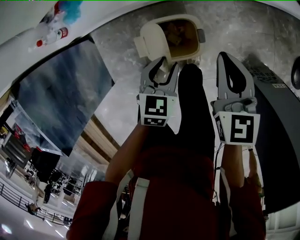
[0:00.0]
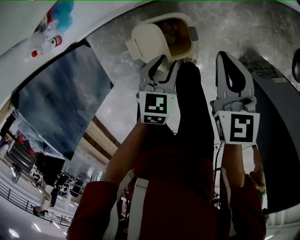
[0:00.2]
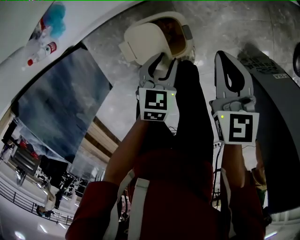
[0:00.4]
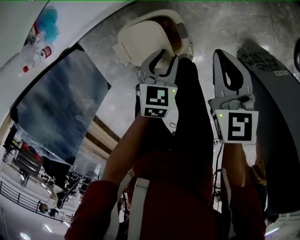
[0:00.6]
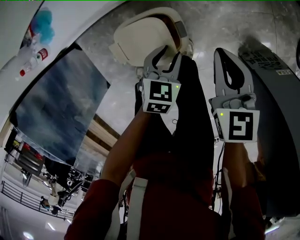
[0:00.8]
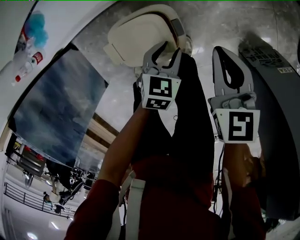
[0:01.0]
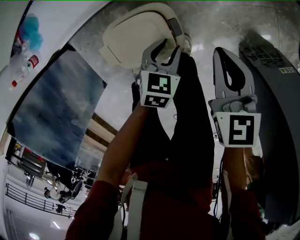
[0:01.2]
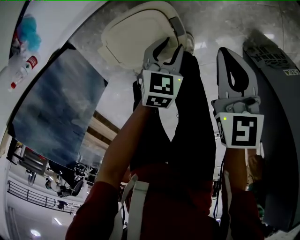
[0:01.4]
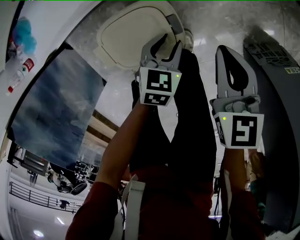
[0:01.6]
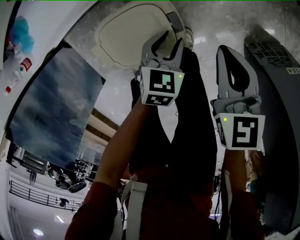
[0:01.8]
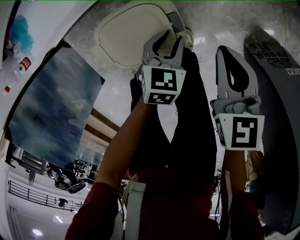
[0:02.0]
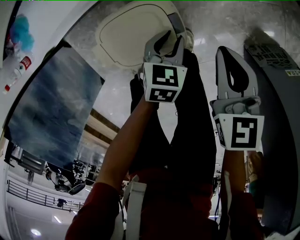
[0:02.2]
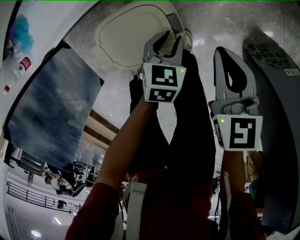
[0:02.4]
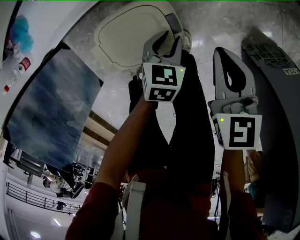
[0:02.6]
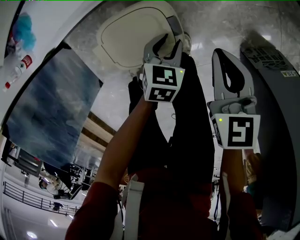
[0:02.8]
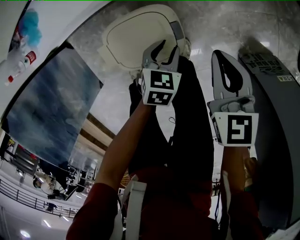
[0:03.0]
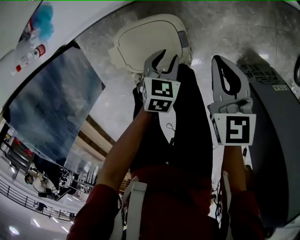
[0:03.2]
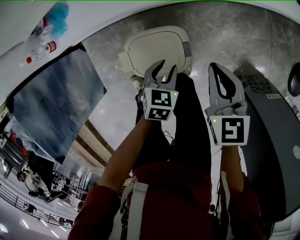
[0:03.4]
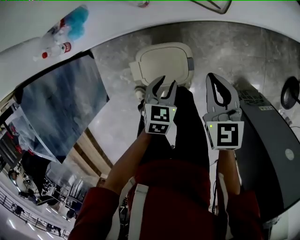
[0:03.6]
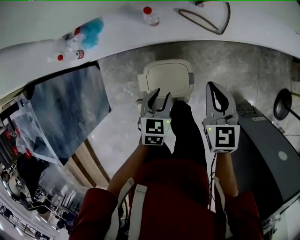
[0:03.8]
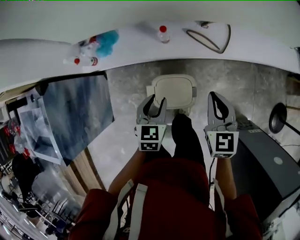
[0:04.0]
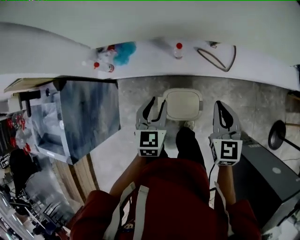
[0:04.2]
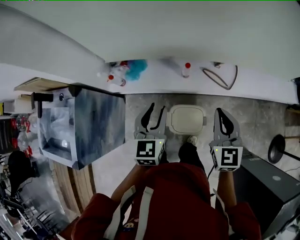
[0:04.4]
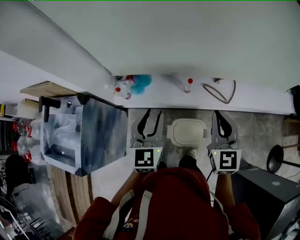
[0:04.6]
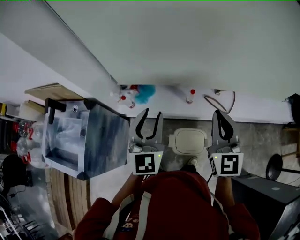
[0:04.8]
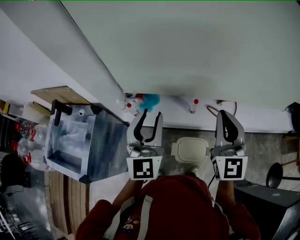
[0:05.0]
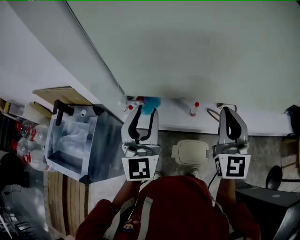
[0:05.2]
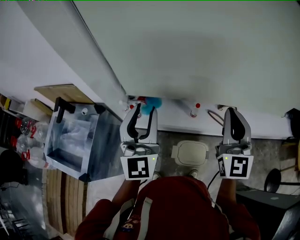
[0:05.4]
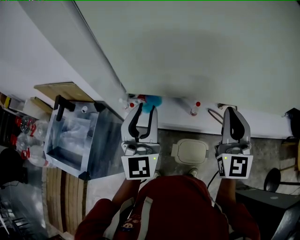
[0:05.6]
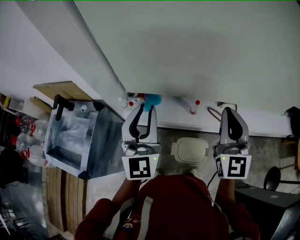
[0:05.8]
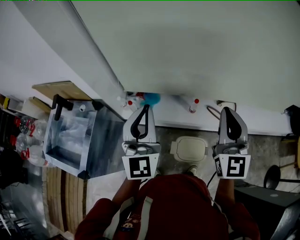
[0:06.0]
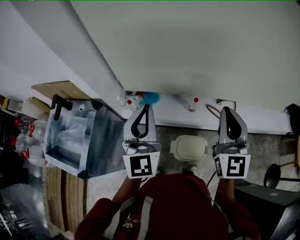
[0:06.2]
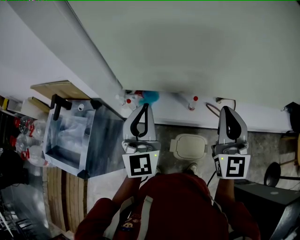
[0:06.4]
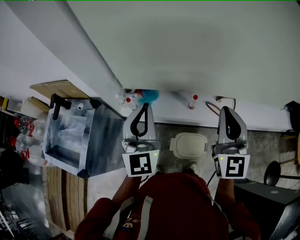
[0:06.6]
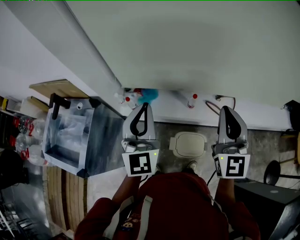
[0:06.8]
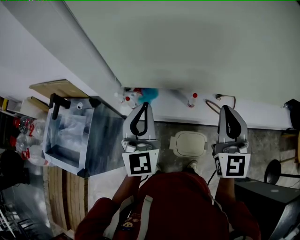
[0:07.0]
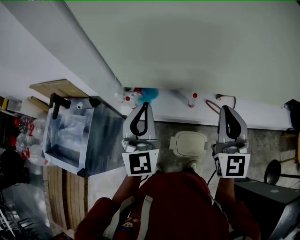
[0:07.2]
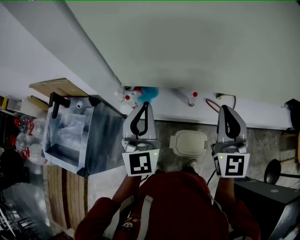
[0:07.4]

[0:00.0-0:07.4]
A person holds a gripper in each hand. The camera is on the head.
0:00.0 to 0:01.4: Both grippers move downward and to the right, roughly 20 cm.
0:01.4 to 0:03.0: The grippers make only small movements.
0:03.0 to 0:04.4: The grippers both shift upward and to the left by some 50 cm. The right gripper changes its angle by approximately 30 degrees, while the left gripper points its fingers roughly 40 degrees further upward.
0:04.4 to 0:06.0: The right gripper heads upward, covering some 20 cm, and turns by approximately 30 degrees. Meanwhile the left gripper is displaced upward and to the left by roughly 25 cm, points its fingers some 30 degrees further upward, and closes its fingers.
0:06.0 to 0:07.4: The grippers move only a little.

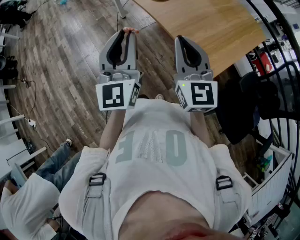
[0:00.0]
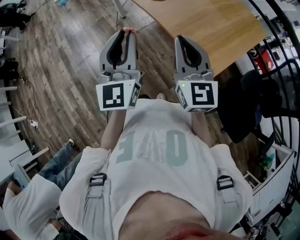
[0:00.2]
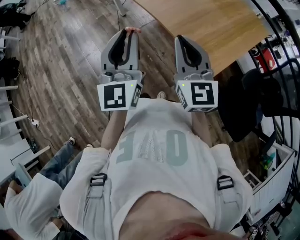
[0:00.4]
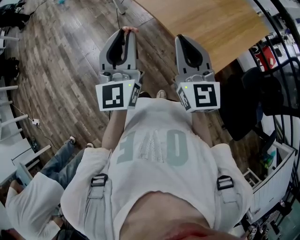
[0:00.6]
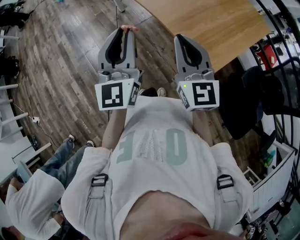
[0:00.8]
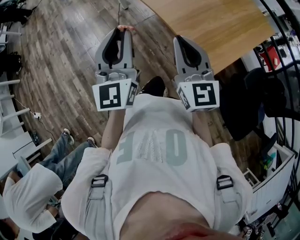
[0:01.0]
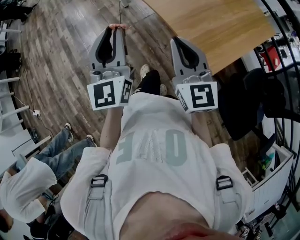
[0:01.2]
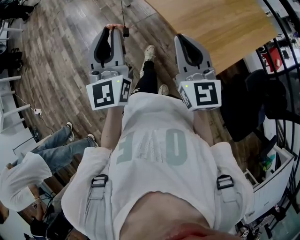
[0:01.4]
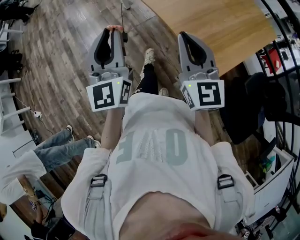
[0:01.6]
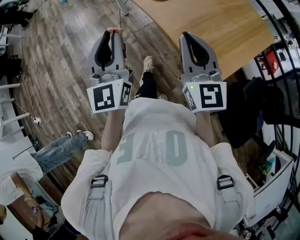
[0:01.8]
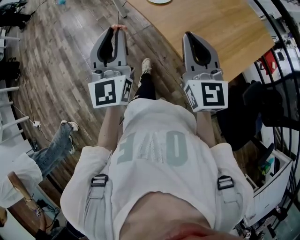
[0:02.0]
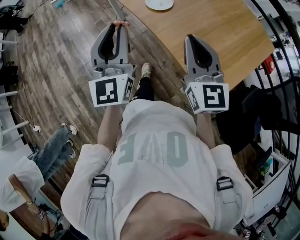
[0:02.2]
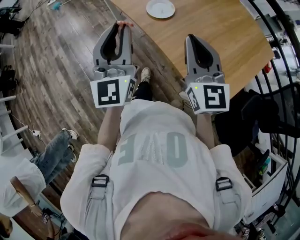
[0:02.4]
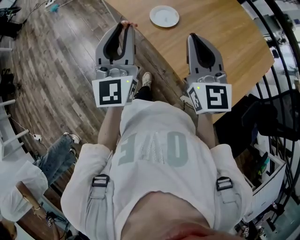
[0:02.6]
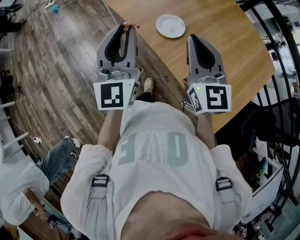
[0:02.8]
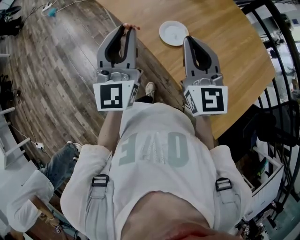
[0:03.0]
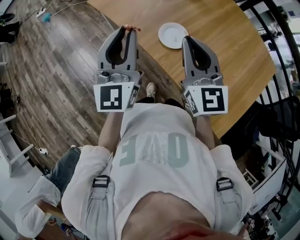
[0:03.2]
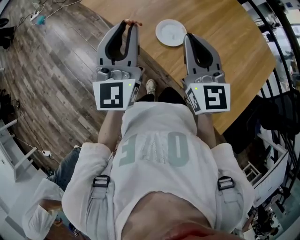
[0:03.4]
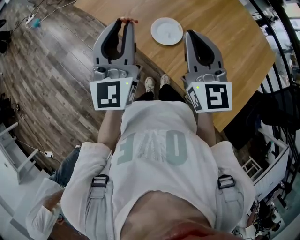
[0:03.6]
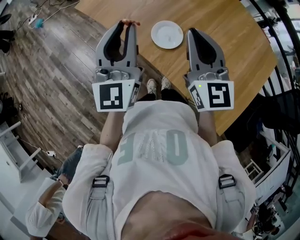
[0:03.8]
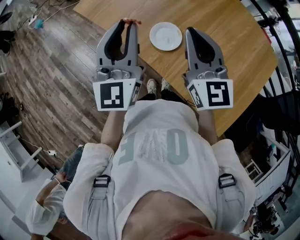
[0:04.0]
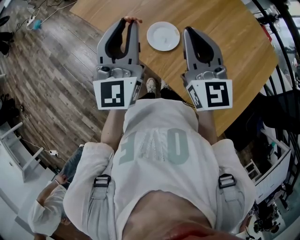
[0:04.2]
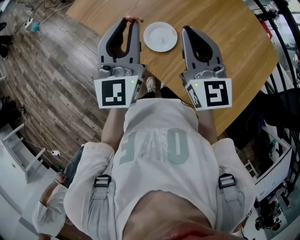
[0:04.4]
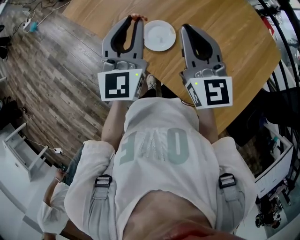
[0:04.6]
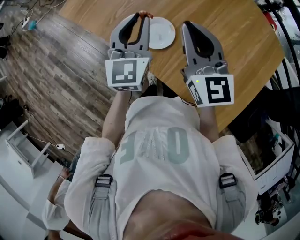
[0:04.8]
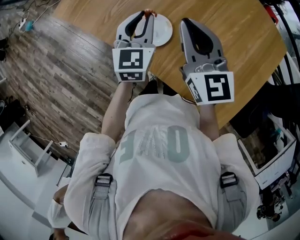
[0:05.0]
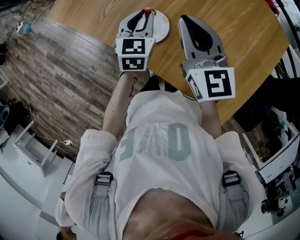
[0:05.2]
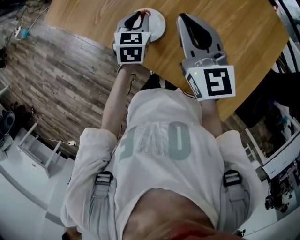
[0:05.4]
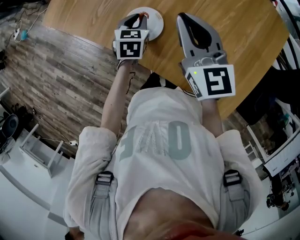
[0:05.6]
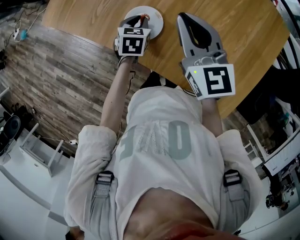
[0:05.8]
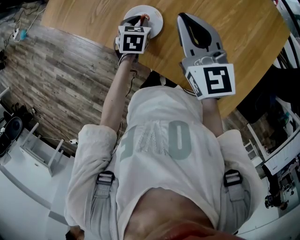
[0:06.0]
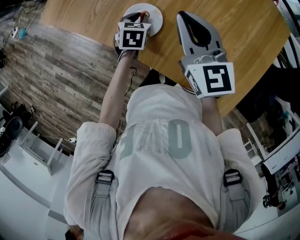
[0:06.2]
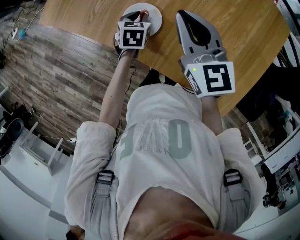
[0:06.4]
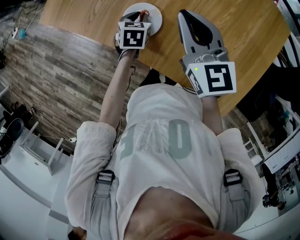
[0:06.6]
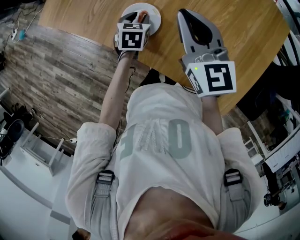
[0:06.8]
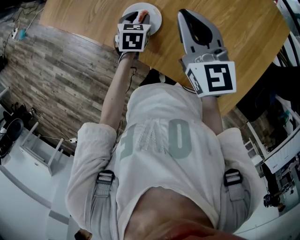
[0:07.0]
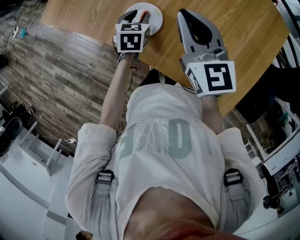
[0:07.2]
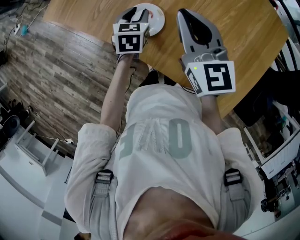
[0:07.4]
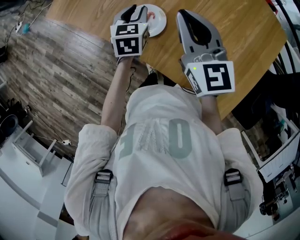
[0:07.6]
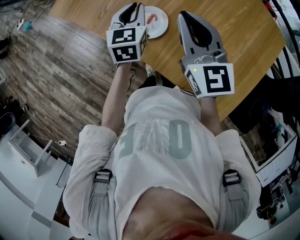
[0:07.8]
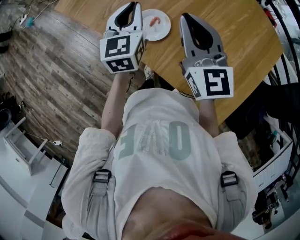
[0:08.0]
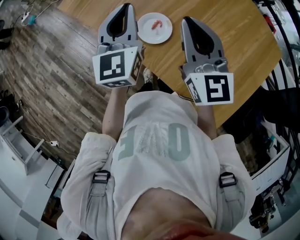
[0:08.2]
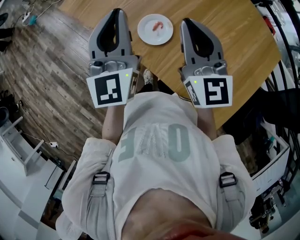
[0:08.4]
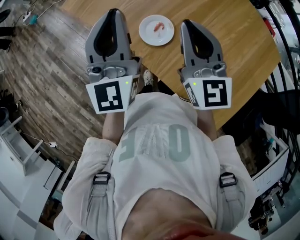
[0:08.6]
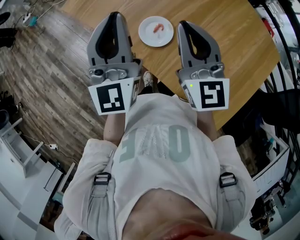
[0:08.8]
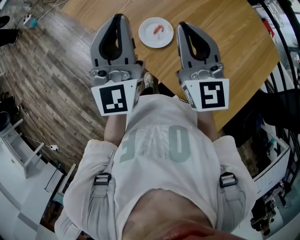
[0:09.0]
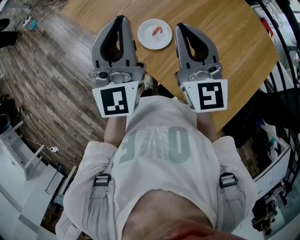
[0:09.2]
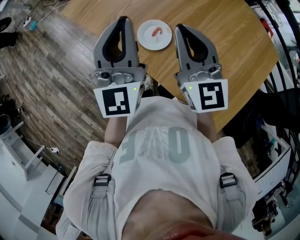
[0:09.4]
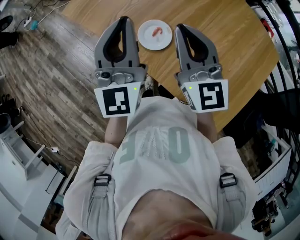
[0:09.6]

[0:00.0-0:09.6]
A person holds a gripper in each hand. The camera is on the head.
0:00.0 to 0:01.6: The grippers make only small movements.
0:01.6 to 0:03.2: The grippers both shift forward by some 35 cm.
0:03.2 to 0:04.8: The left gripper travels to the right, forward and downward by approximately 20 cm, and rotates some 20 degrees; the right gripper shifts approximately 15 cm forward and to the right.
0:04.8 to 0:06.4: The left gripper moves downward, some 25 cm, and angles its fingers downward, by roughly 40 degrees. The right gripper shifts some 5 cm downward.
0:06.4 to 0:08.0: The left gripper heads upward, covering about 20 cm, and angles its fingers upward, by approximately 40 degrees. Meanwhile the right gripper shifts some 5 cm upward.
0:08.0 to 0:09.6: The left gripper is displaced upward and backward by approximately 15 cm, and changes its angle by approximately 30 degrees.

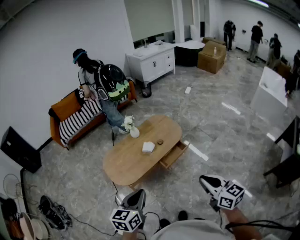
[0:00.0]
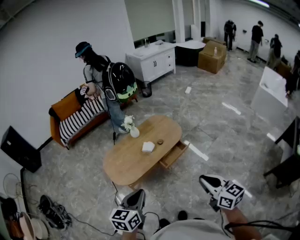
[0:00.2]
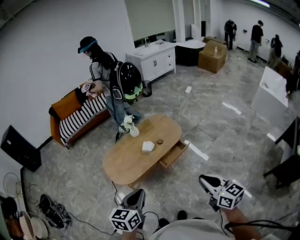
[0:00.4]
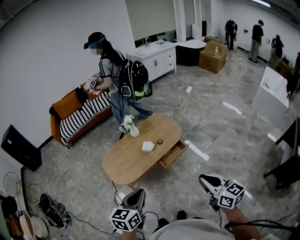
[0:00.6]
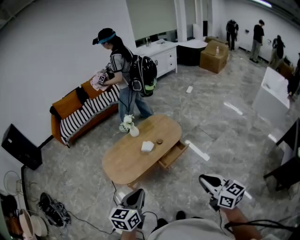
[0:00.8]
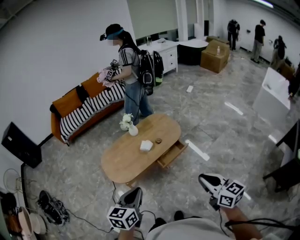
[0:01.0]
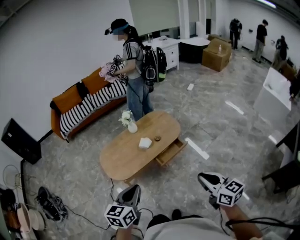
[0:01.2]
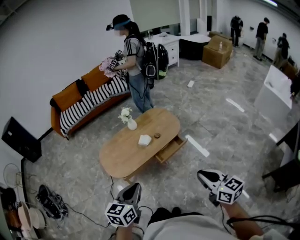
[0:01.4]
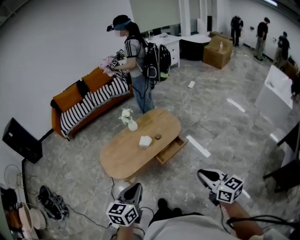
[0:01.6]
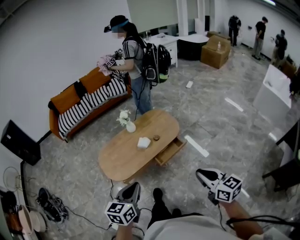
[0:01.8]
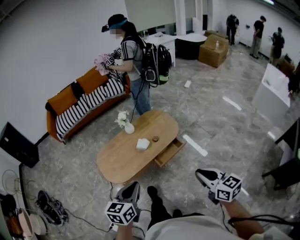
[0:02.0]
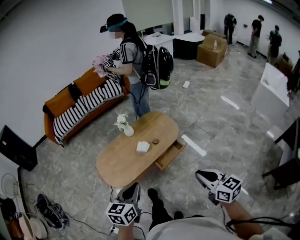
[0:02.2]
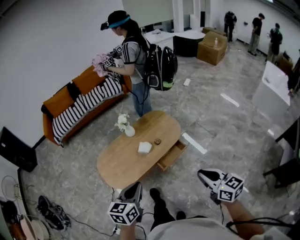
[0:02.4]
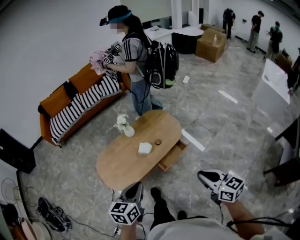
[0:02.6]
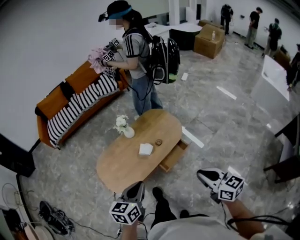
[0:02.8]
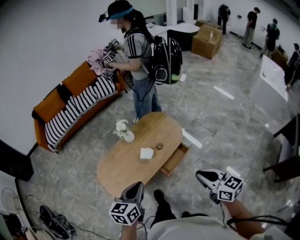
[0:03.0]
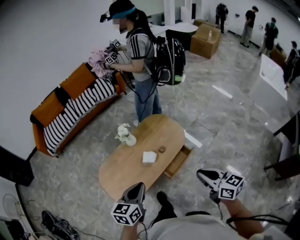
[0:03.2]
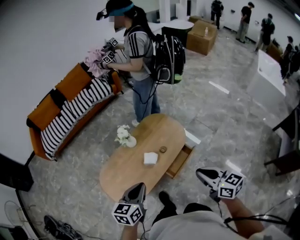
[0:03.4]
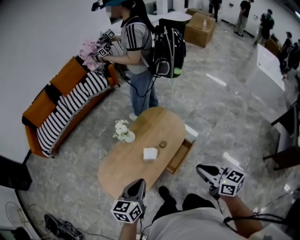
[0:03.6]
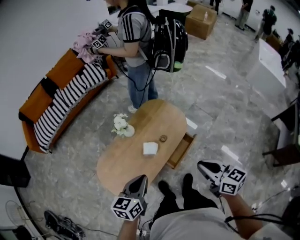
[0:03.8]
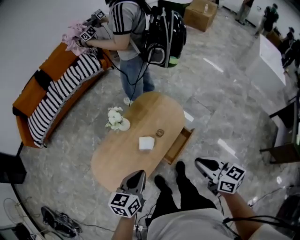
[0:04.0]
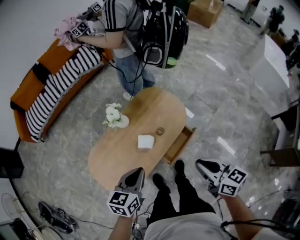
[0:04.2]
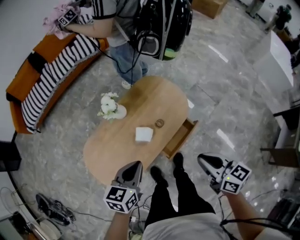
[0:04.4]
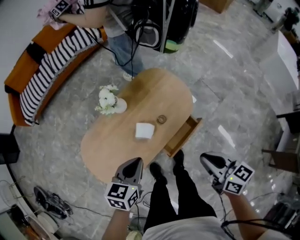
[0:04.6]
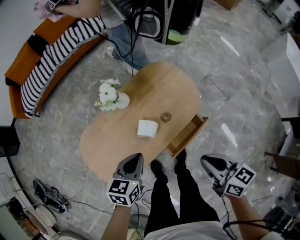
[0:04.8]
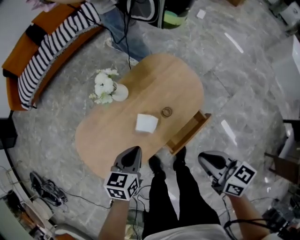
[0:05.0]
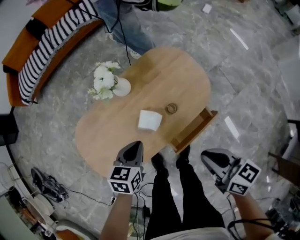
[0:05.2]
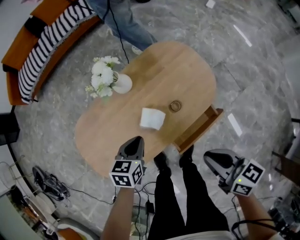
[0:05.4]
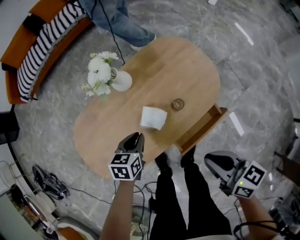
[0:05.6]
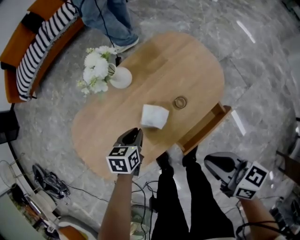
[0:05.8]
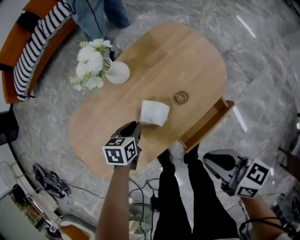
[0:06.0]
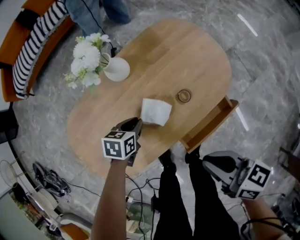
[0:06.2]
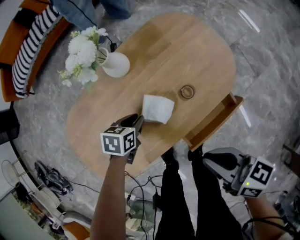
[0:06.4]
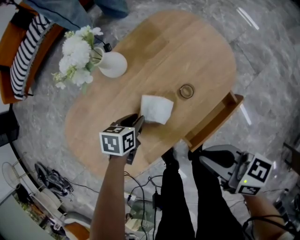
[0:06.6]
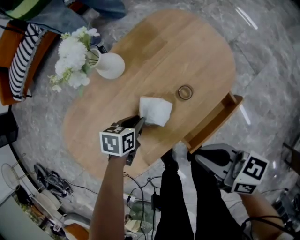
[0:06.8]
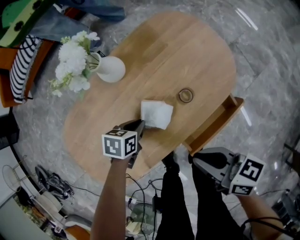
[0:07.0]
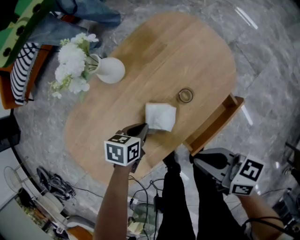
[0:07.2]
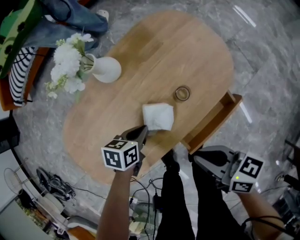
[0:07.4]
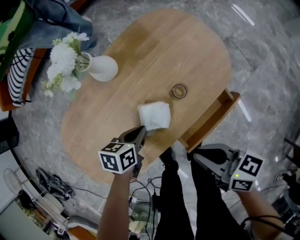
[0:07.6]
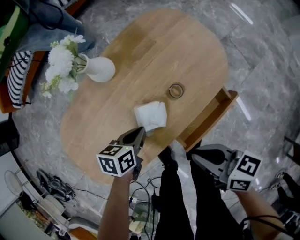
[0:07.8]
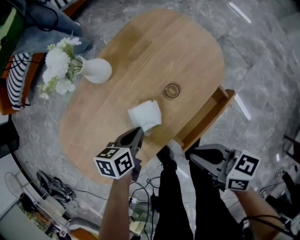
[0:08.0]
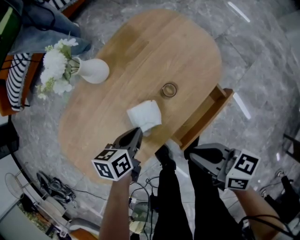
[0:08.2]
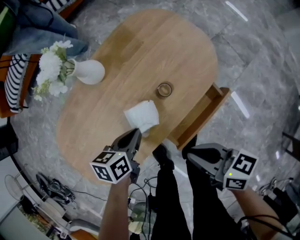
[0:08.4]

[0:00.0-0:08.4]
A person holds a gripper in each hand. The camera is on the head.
0:00.0 to 0:01.4: The right gripper shifts roughly 5 cm to the right.
0:01.4 to 0:02.8: Both grippers travel together forward, about 15 cm.
0:02.8 to 0:04.2: The left gripper is displaced forward and downward by some 20 cm. Meanwhile the right gripper heads forward, covering about 15 cm.
0:04.2 to 0:05.6: The left gripper moves downward, roughly 30 cm, and changes its angle by approximately 30 degrees; the right gripper goes approximately 20 cm downward, and changes its angle by some 20 degrees.
0:05.6 to 0:07.0: The right gripper is displaced downward and to the left by about 10 cm, while the left gripper heads downward, covering some 15 cm.
0:07.0 to 0:08.4: The left gripper goes about 10 cm upward and to the right. The right gripper shifts by approximately 5 cm.
